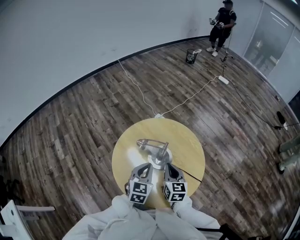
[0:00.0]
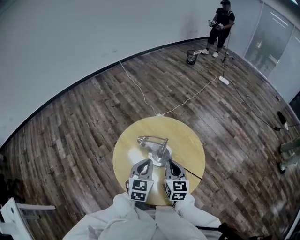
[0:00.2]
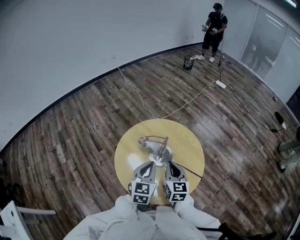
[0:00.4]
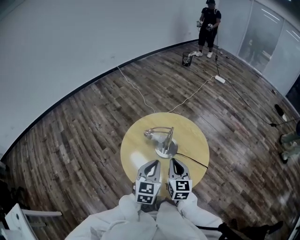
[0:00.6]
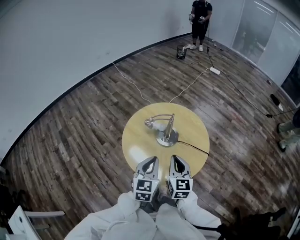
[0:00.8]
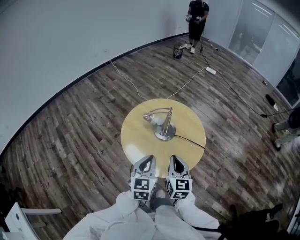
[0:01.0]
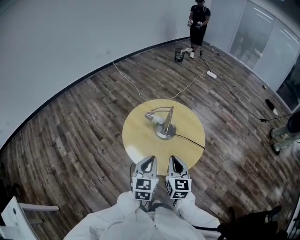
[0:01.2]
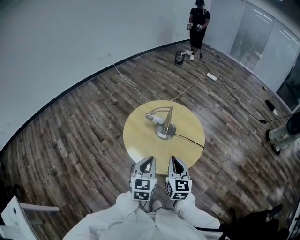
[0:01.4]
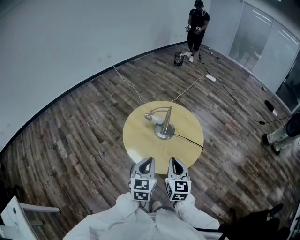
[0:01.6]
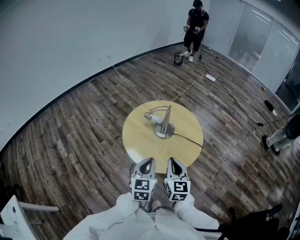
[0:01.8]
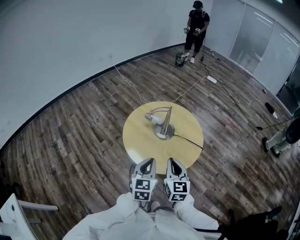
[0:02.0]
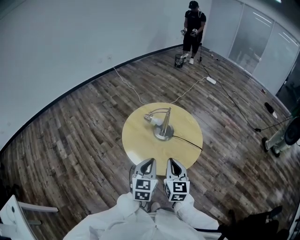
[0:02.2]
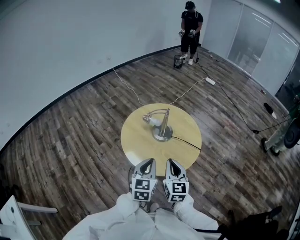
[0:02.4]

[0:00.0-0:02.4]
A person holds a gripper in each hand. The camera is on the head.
0:00.0 to 0:01.2: The grippers both shift backward by about 20 cm.
0:01.2 to 0:02.4: The grippers move only a little.

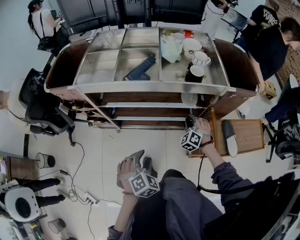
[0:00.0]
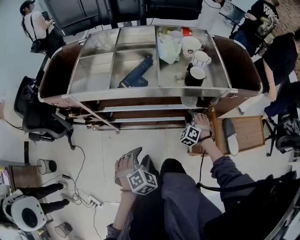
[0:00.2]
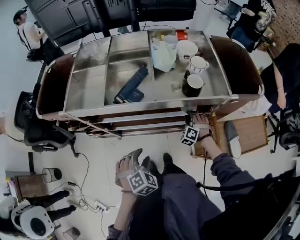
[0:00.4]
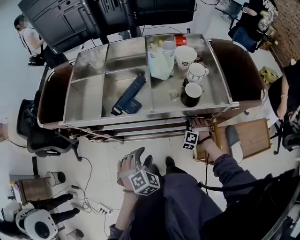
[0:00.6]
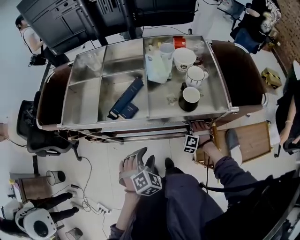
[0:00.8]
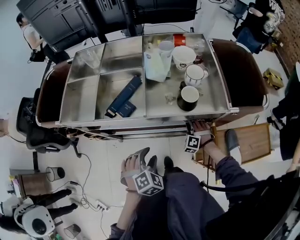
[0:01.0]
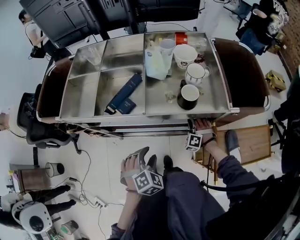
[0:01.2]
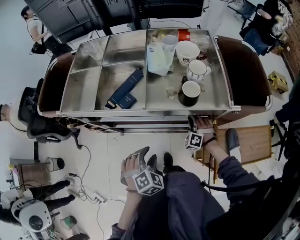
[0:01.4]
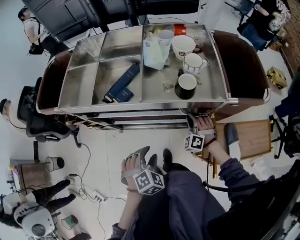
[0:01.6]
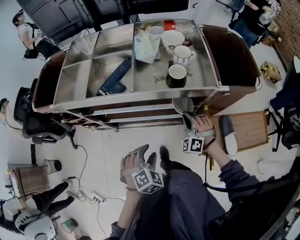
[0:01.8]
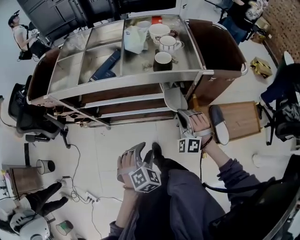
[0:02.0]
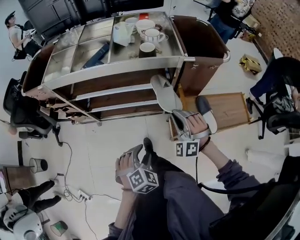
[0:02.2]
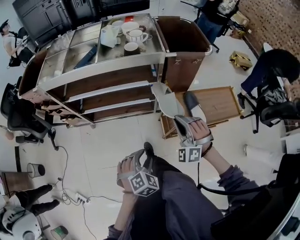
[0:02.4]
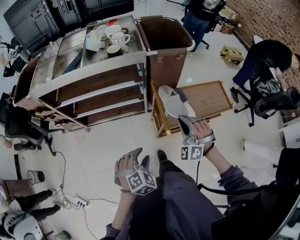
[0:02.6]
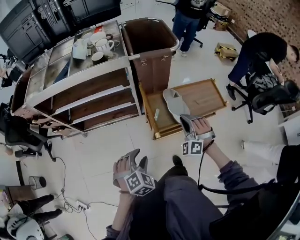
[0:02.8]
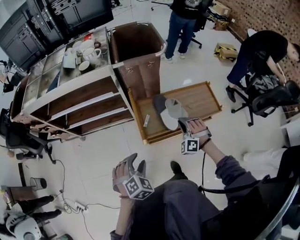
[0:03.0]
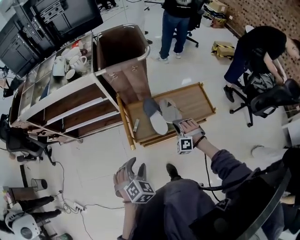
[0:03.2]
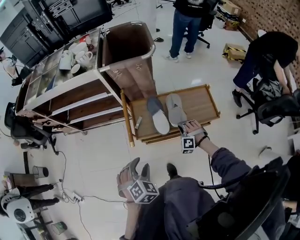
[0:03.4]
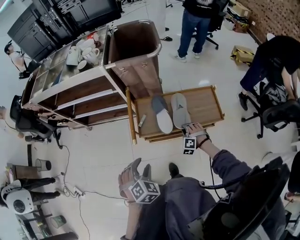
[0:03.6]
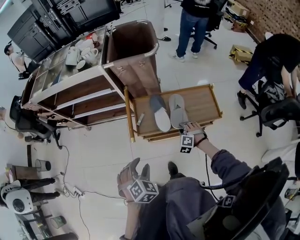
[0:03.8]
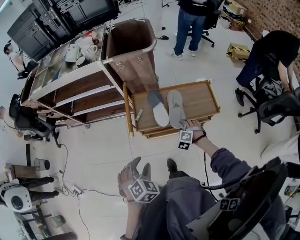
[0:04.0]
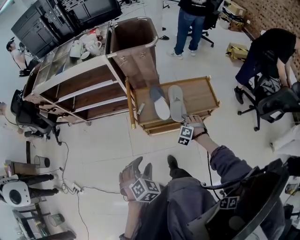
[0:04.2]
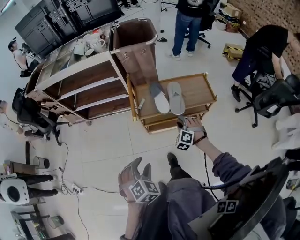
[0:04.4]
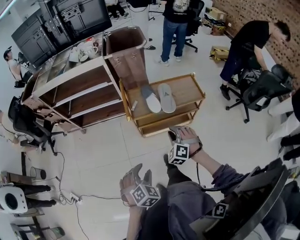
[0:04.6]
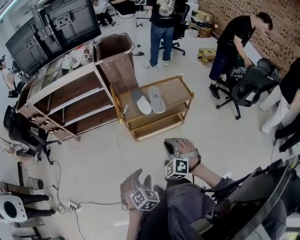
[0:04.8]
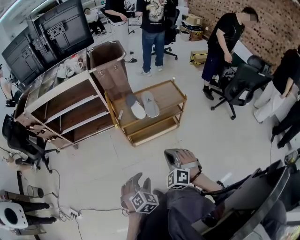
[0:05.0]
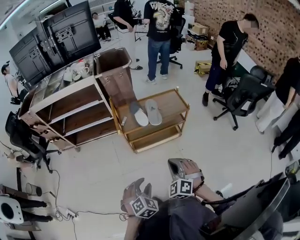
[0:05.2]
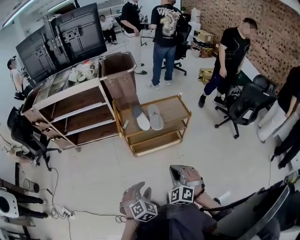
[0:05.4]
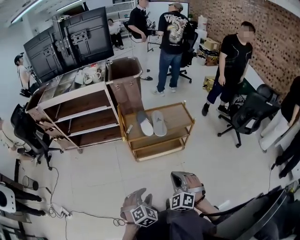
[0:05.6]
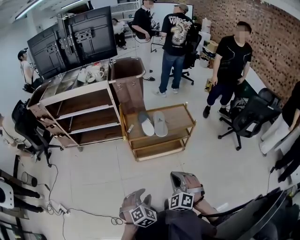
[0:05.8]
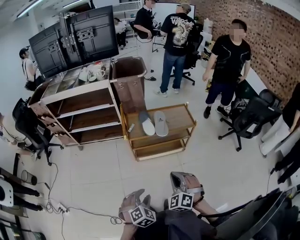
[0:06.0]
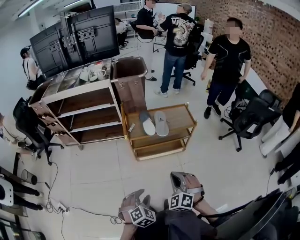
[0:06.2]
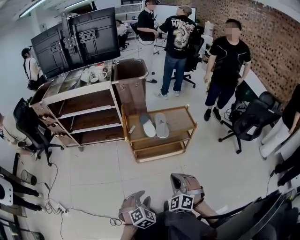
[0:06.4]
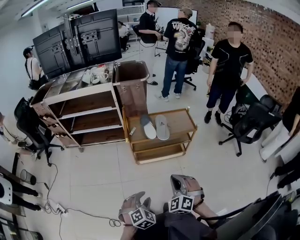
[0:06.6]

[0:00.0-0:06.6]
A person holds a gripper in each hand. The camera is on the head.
0:00.0 to 0:01.6: The left gripper moves approximately 15 cm.
0:01.6 to 0:03.2: The left gripper shifts by about 50 cm.
0:03.2 to 0:05.0: The left gripper ends up some 30 cm from where it was.

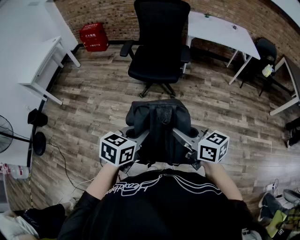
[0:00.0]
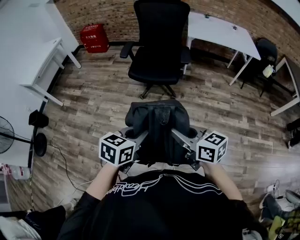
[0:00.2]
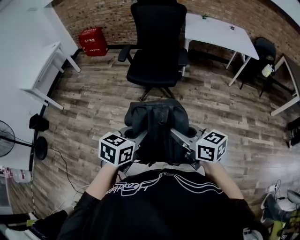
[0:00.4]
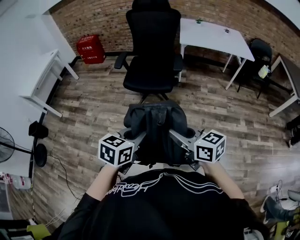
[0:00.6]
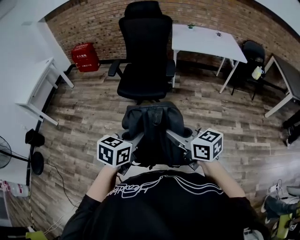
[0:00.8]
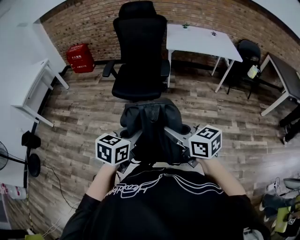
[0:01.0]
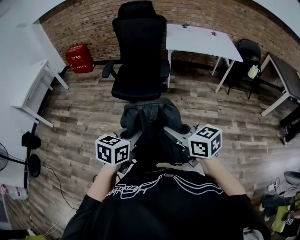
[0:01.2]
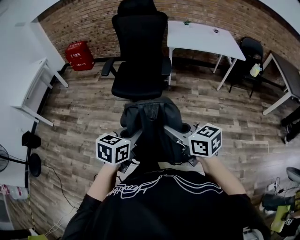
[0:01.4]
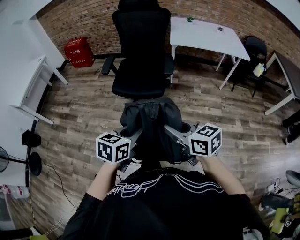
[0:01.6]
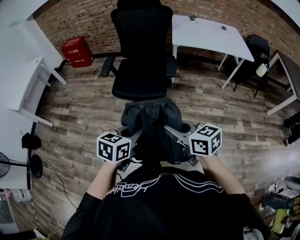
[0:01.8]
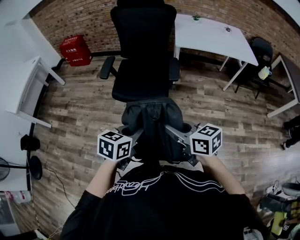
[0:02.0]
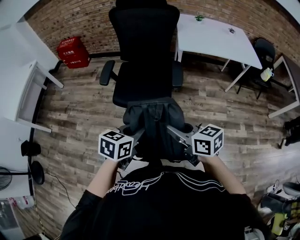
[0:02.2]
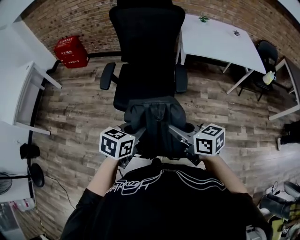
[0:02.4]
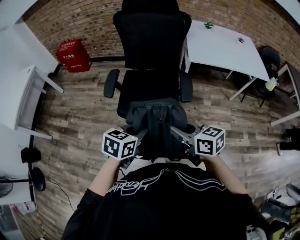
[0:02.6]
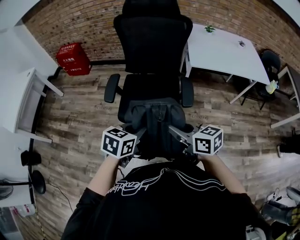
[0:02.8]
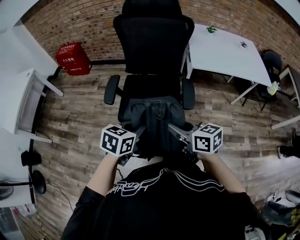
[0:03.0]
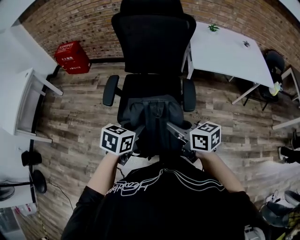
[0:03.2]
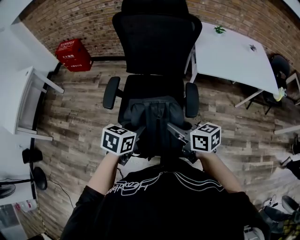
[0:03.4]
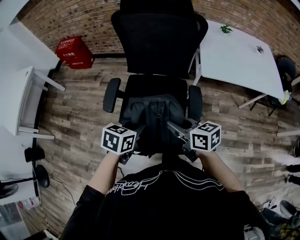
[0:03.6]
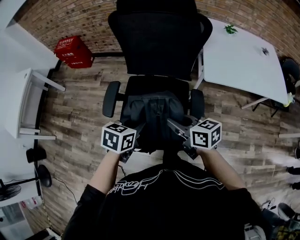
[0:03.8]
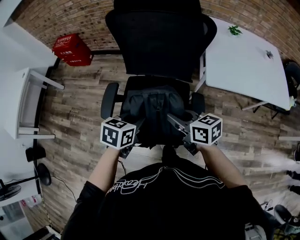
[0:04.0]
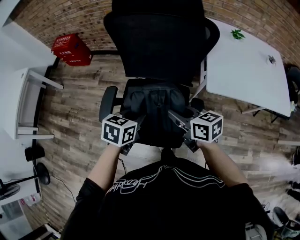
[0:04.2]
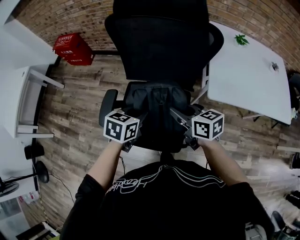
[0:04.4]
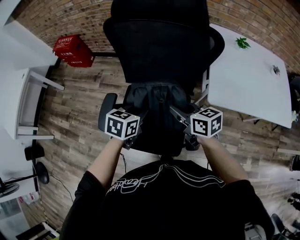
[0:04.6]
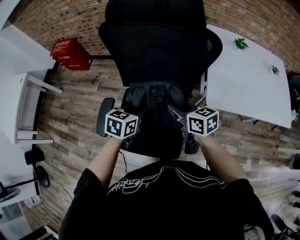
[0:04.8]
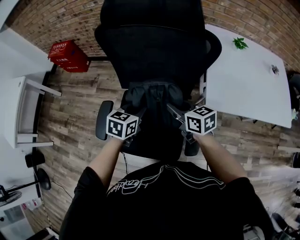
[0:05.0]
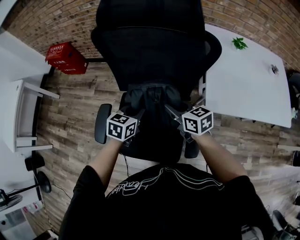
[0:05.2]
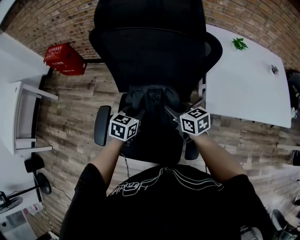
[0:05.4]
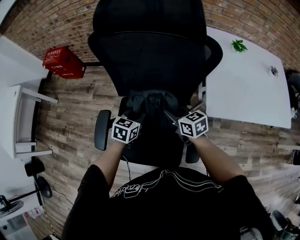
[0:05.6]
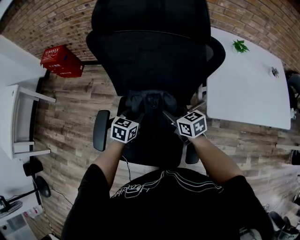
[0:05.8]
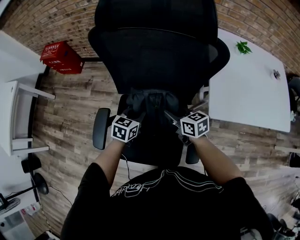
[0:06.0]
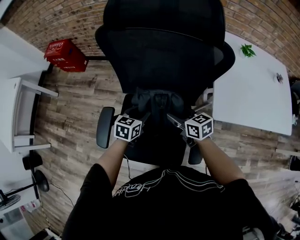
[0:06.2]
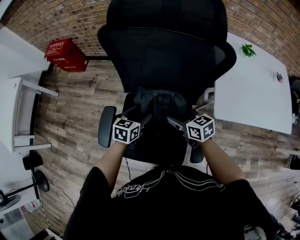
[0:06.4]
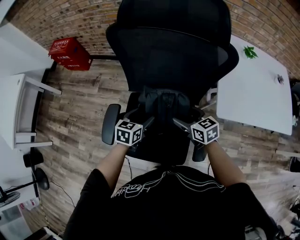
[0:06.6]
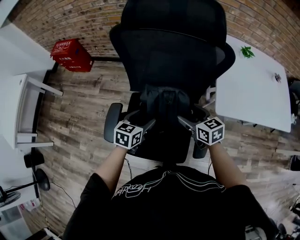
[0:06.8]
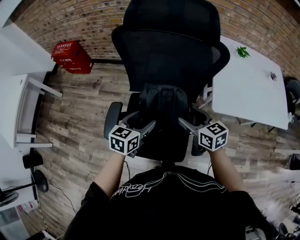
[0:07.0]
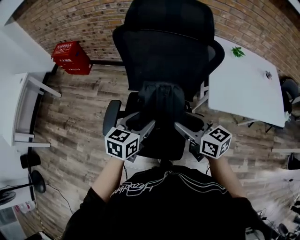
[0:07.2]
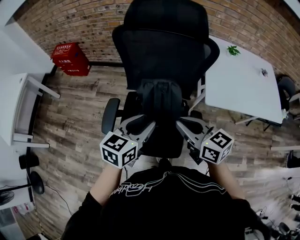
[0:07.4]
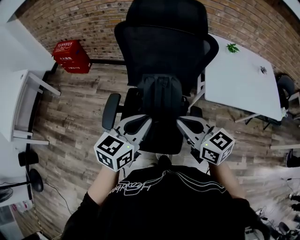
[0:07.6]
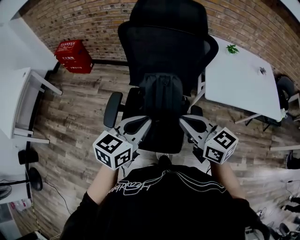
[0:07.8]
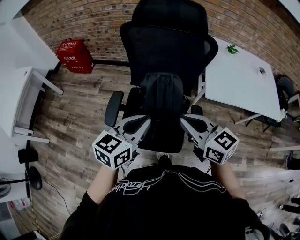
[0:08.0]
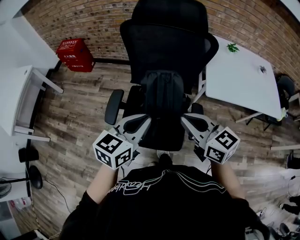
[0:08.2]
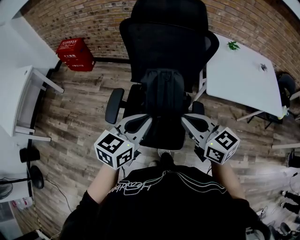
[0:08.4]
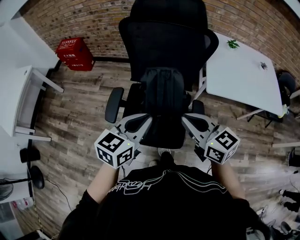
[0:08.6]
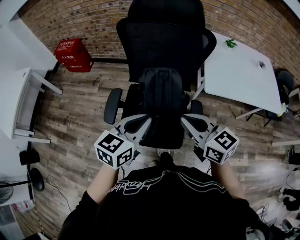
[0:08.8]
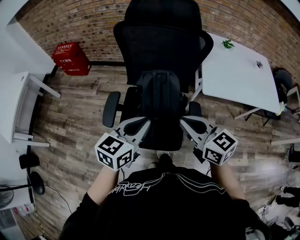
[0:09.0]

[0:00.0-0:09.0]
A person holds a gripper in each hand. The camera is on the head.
0:00.0 to 0:01.6: The two grippers go approximately 15 cm forward and to the right.
0:01.6 to 0:03.0: Both grippers move forward, some 35 cm.
0:03.0 to 0:04.4: The grippers both shift forward by approximately 30 cm.
0:04.4 to 0:06.0: The left gripper goes some 15 cm forward and downward. Meanwhile the right gripper shifts roughly 15 cm downward and forward.
0:06.0 to 0:07.6: Both grippers move upward and backward, roughly 30 cm. The left gripper opens and closes again. The right gripper opens, then closes again.
0:07.6 to 0:09.0: The grippers move only a little.

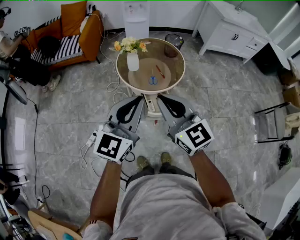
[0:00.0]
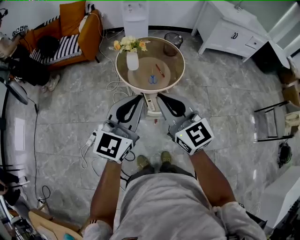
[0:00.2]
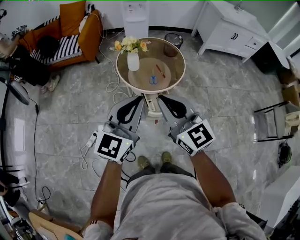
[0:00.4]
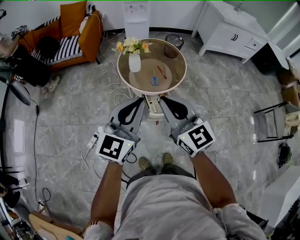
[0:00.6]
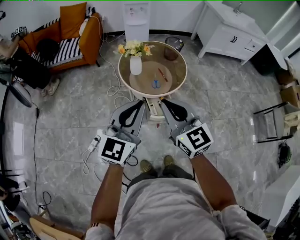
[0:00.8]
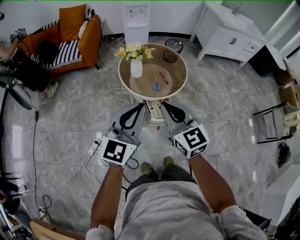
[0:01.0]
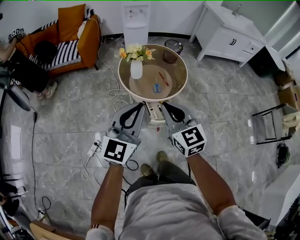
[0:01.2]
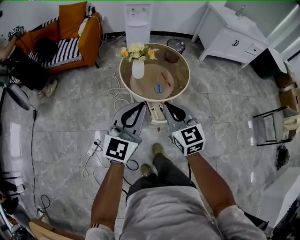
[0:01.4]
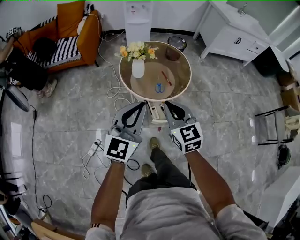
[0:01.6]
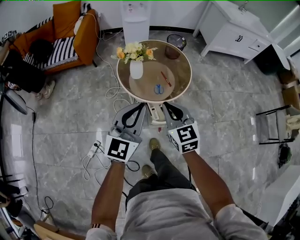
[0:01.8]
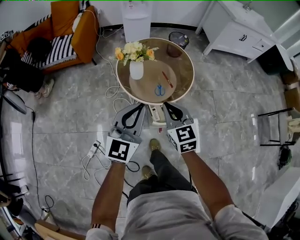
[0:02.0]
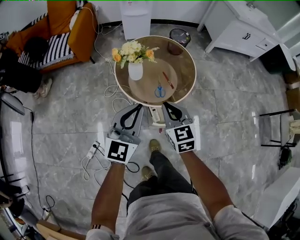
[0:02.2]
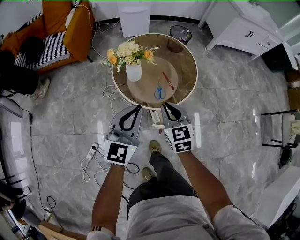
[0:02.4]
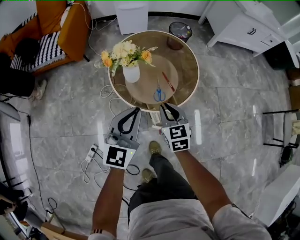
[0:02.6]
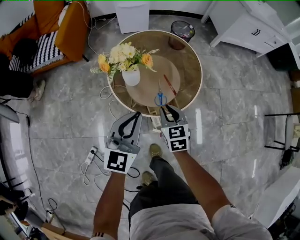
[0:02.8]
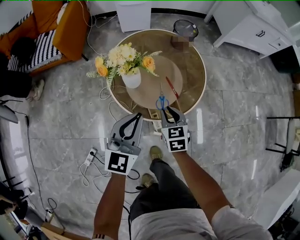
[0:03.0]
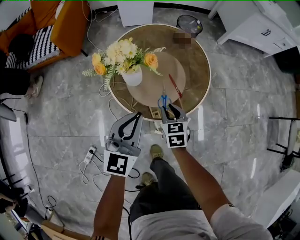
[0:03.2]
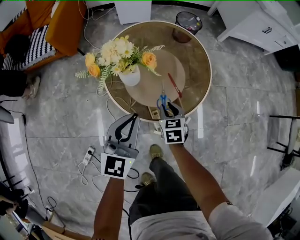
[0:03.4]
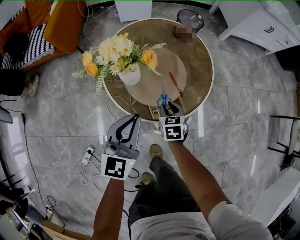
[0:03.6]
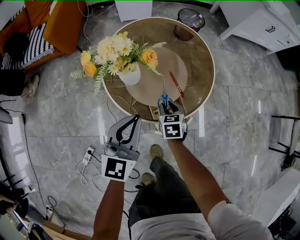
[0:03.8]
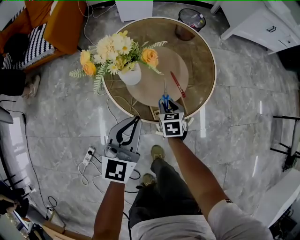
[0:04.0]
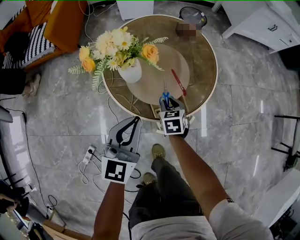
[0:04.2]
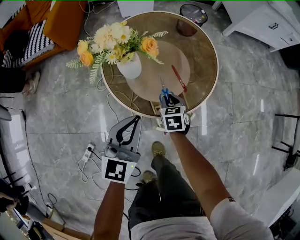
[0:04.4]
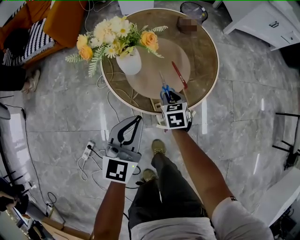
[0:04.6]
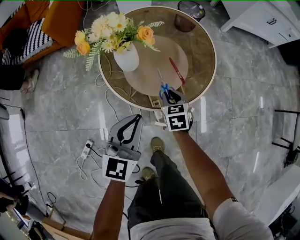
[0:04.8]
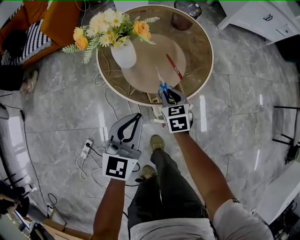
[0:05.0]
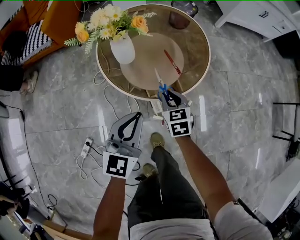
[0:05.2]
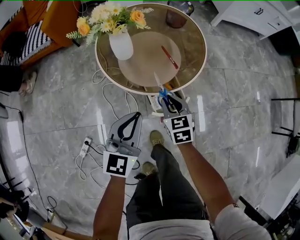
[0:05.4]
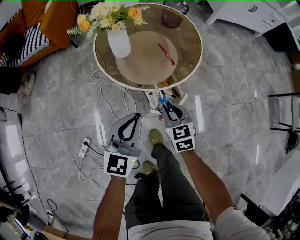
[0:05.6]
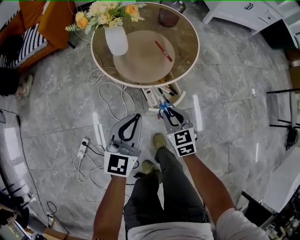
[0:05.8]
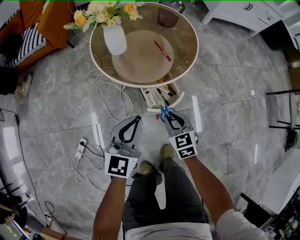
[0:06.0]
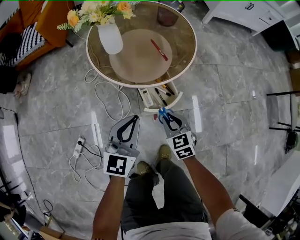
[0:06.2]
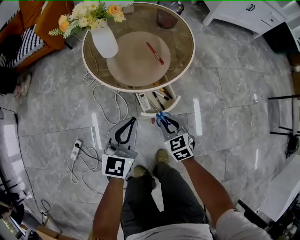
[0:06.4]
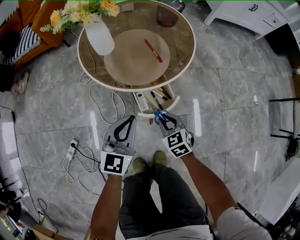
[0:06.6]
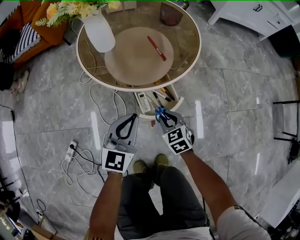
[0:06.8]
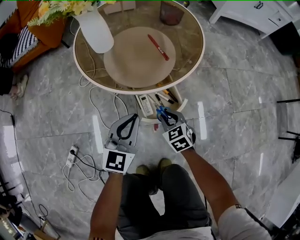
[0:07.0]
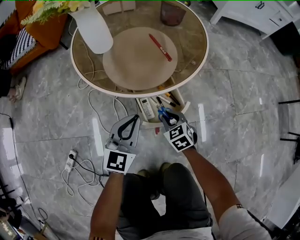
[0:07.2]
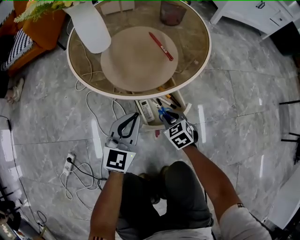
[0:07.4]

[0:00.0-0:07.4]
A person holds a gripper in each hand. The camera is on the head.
0:00.0 to 0:01.4: The left gripper travels to the left, forward and downward by approximately 10 cm. The right gripper shifts approximately 10 cm downward and forward.
0:01.4 to 0:03.0: The right gripper travels downward and forward by approximately 40 cm, and turns by about 30 degrees. Meanwhile the left gripper heads forward and downward, covering roughly 35 cm.
0:03.0 to 0:04.4: The right gripper shifts approximately 15 cm downward, while the left gripper is displaced downward by approximately 10 cm.
0:04.4 to 0:06.0: The two grippers go about 20 cm backward.
0:06.0 to 0:07.4: Both grippers move downward, approximately 25 cm.
